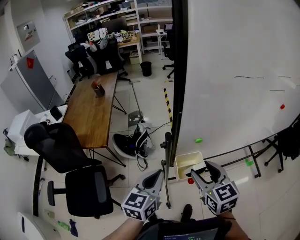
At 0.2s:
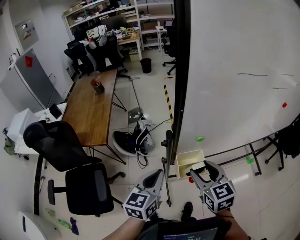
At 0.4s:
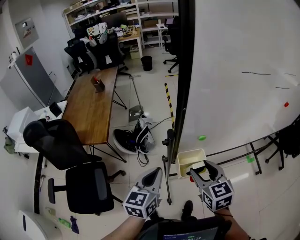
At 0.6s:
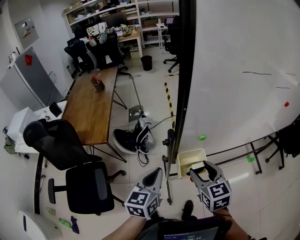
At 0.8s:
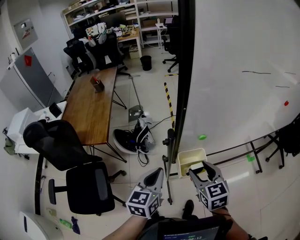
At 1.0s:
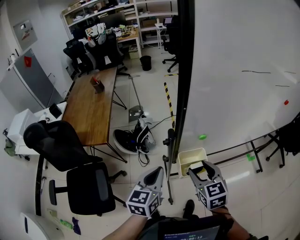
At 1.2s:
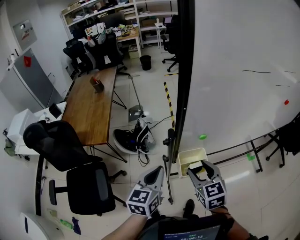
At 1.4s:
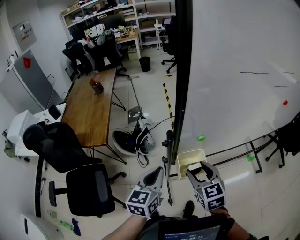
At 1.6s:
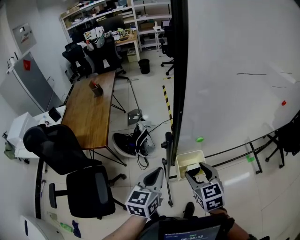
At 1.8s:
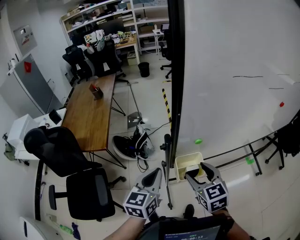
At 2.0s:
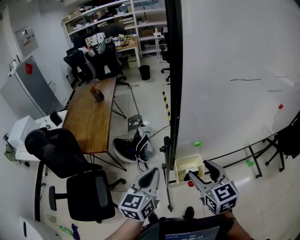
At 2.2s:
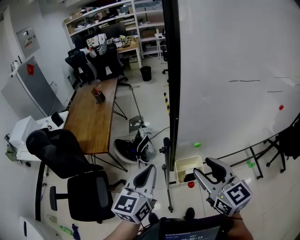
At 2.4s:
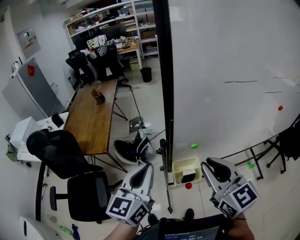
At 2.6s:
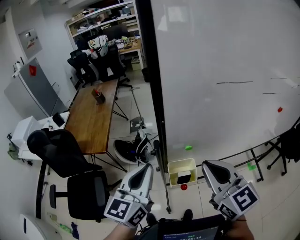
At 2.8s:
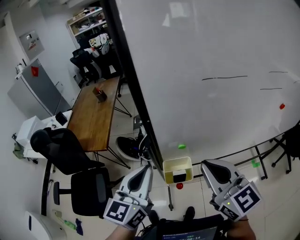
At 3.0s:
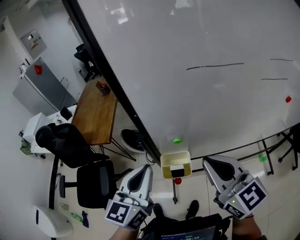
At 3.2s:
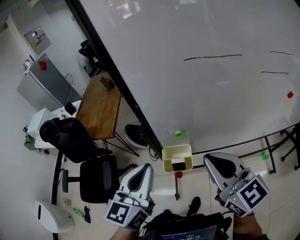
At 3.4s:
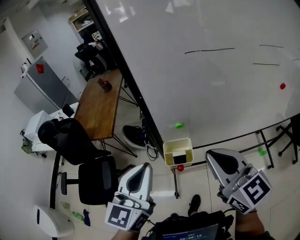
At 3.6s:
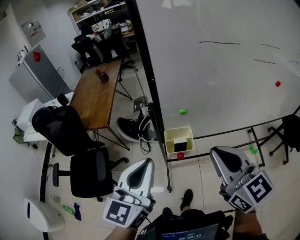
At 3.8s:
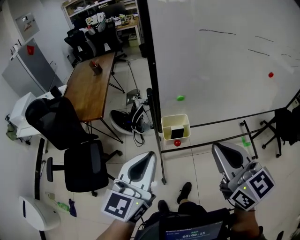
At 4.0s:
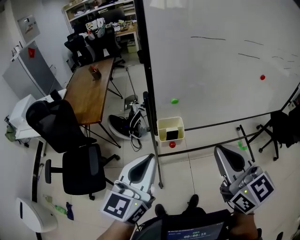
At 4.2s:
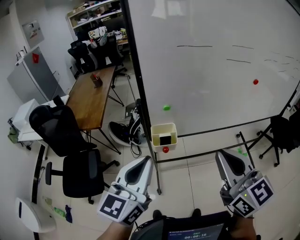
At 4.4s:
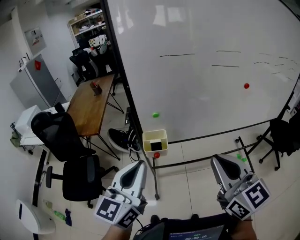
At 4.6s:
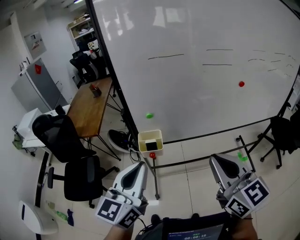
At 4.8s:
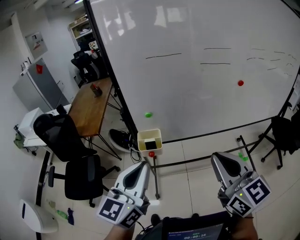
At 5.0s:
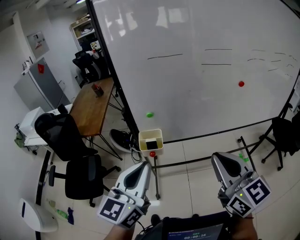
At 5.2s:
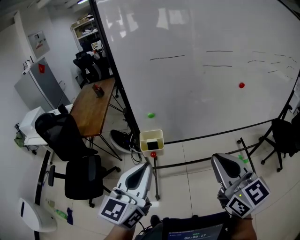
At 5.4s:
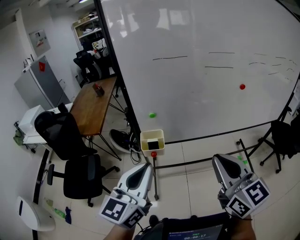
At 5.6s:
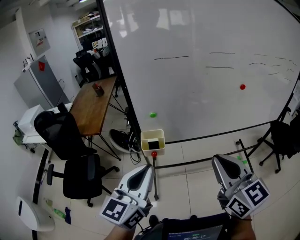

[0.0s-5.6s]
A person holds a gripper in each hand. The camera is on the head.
0.0s to 1.4s: The right gripper goes about 10 cm downward.
1.4s to 2.8s: Both grippers travel together upward and to the right, some 20 cm. The right gripper changes its angle by approximately 30 degrees, and closes.
2.8s to 4.2s: The two grippers go some 20 cm backward.
4.2s to 5.6s: The grippers both shift to the right and backward by approximately 10 cm.

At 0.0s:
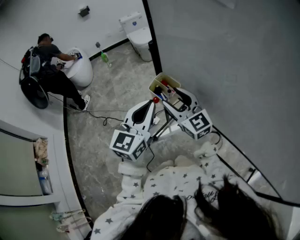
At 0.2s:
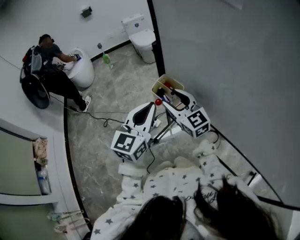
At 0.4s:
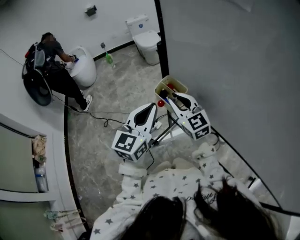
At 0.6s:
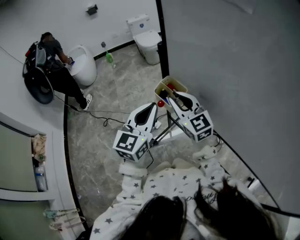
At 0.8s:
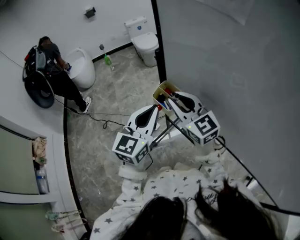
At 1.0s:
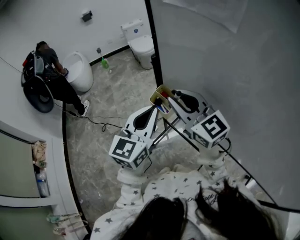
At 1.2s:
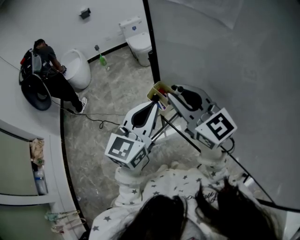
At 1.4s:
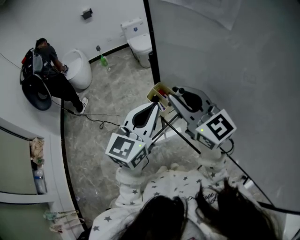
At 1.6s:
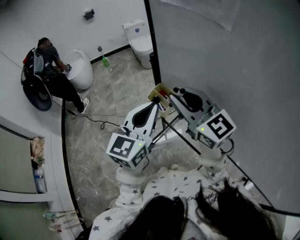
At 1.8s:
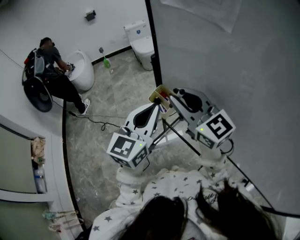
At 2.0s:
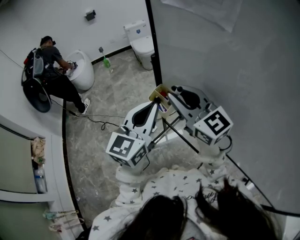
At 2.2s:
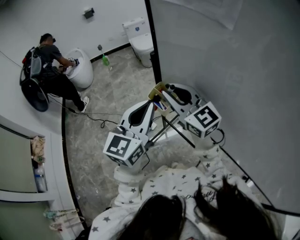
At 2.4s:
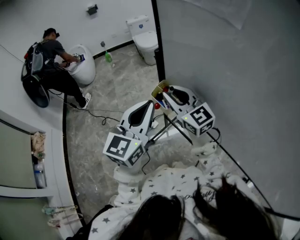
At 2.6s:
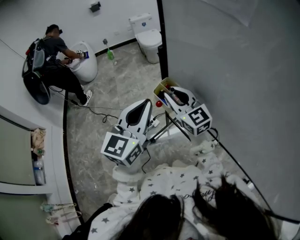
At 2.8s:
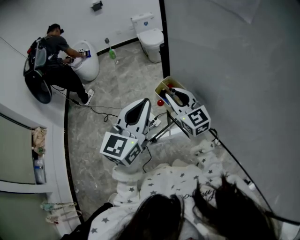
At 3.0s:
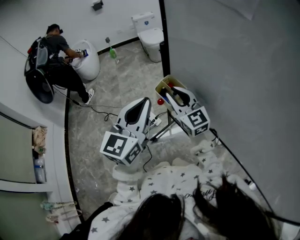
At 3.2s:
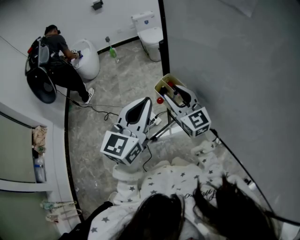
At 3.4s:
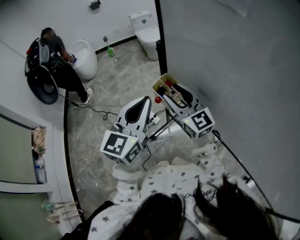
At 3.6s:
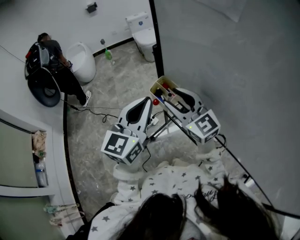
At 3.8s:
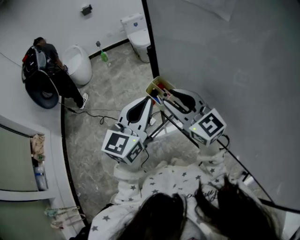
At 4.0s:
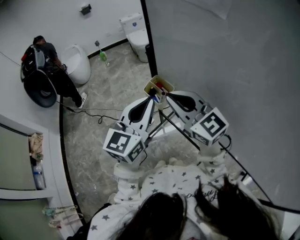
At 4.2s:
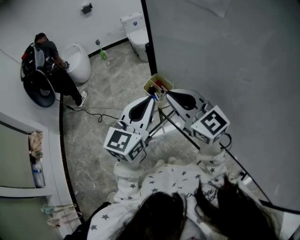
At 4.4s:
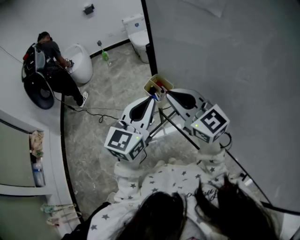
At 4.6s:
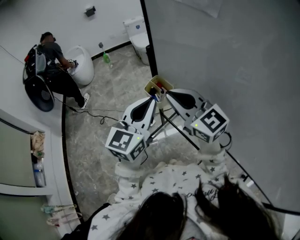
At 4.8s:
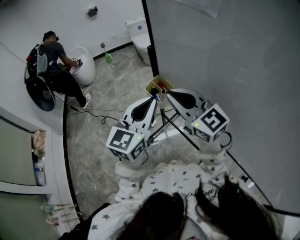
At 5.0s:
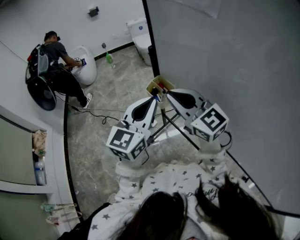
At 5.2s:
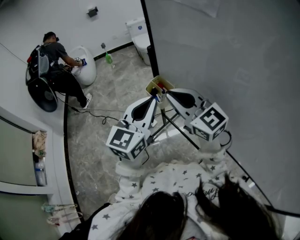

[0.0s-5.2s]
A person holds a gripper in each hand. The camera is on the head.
0.0s to 1.8s: The left gripper is displaced upward by some 5 cm, while the right gripper travels upward by roughly 15 cm, and closes.
1.8s to 3.4s: The right gripper travels downward by approximately 10 cm, and opens.
3.4s to 5.2s: The right gripper moves backward and upward, about 10 cm, and closes its fingers.

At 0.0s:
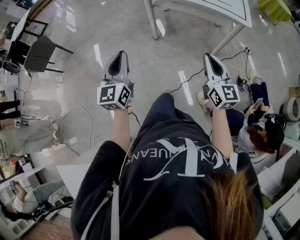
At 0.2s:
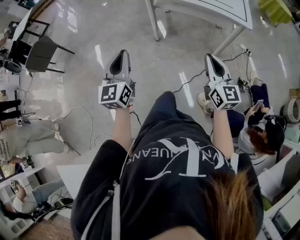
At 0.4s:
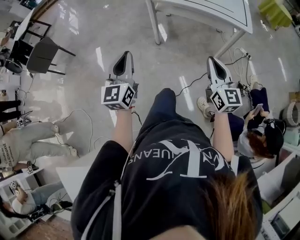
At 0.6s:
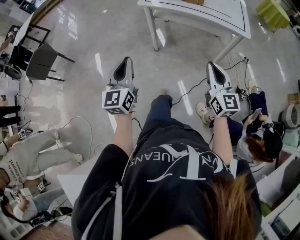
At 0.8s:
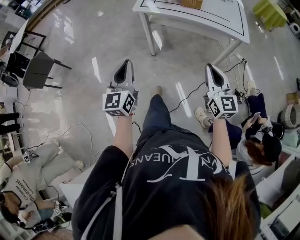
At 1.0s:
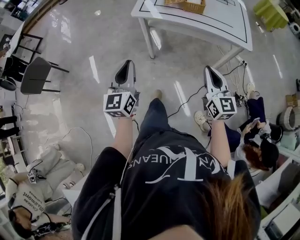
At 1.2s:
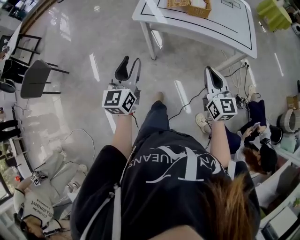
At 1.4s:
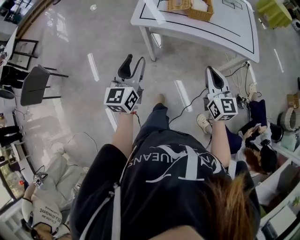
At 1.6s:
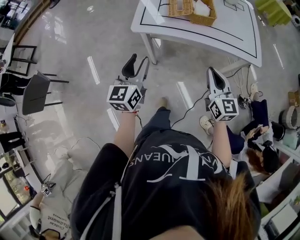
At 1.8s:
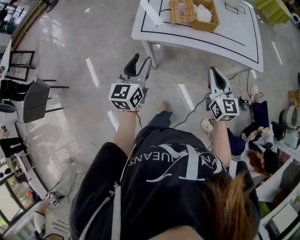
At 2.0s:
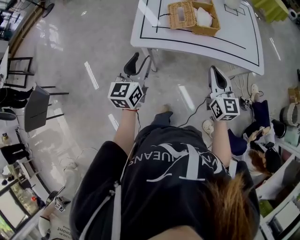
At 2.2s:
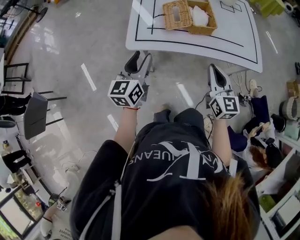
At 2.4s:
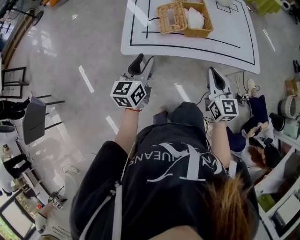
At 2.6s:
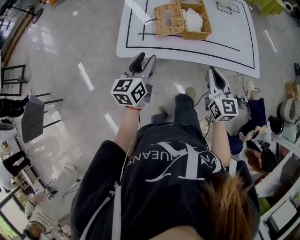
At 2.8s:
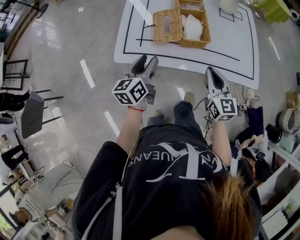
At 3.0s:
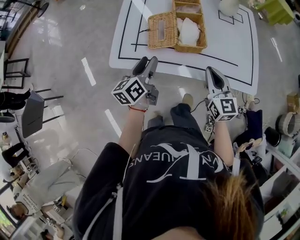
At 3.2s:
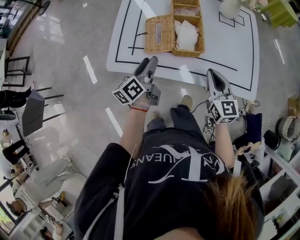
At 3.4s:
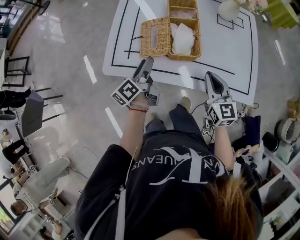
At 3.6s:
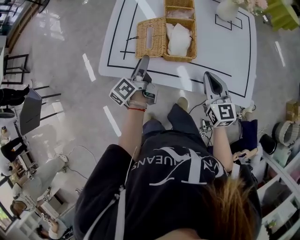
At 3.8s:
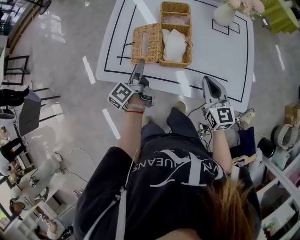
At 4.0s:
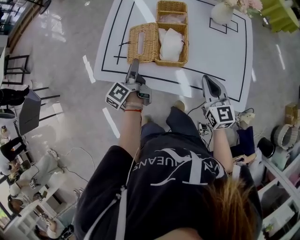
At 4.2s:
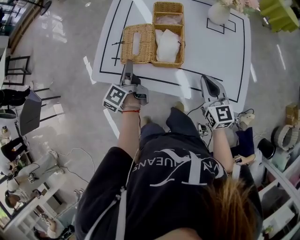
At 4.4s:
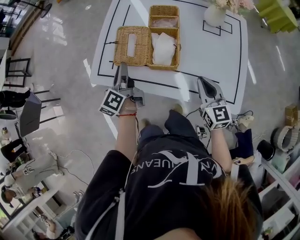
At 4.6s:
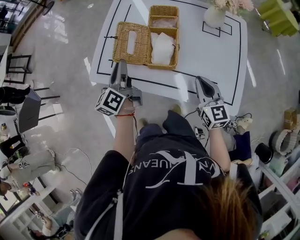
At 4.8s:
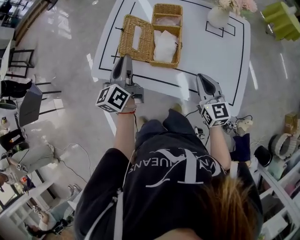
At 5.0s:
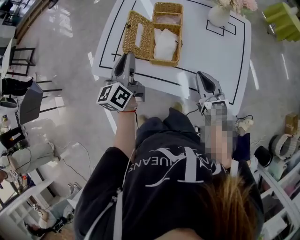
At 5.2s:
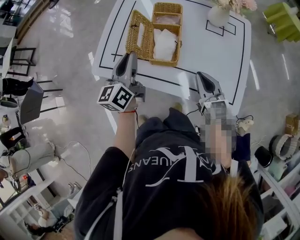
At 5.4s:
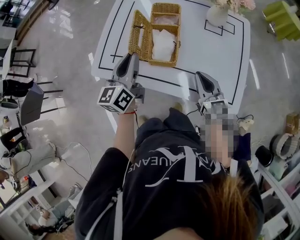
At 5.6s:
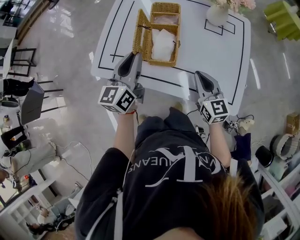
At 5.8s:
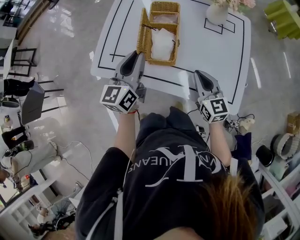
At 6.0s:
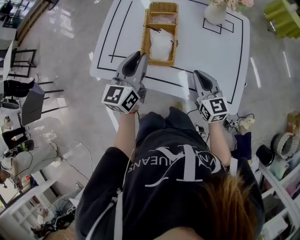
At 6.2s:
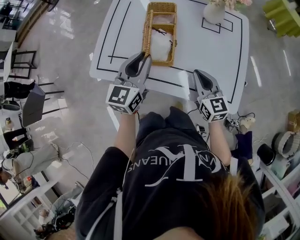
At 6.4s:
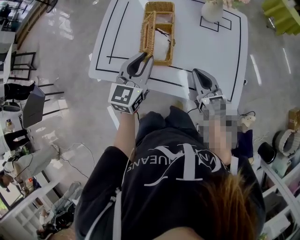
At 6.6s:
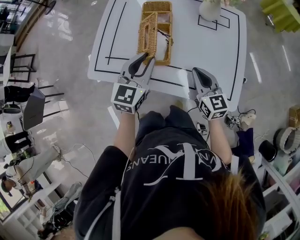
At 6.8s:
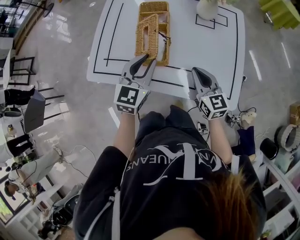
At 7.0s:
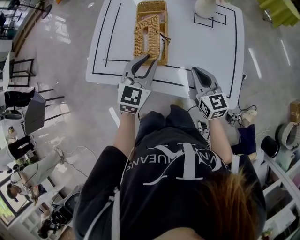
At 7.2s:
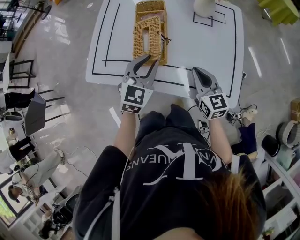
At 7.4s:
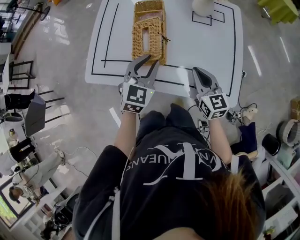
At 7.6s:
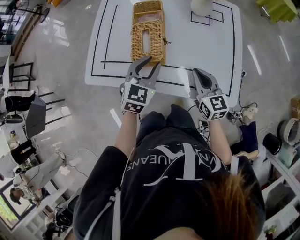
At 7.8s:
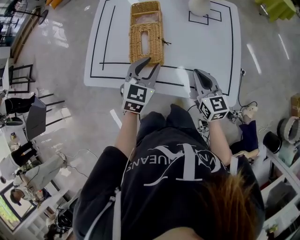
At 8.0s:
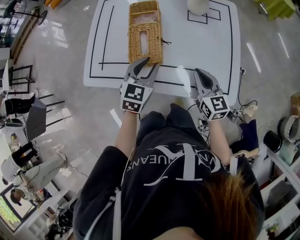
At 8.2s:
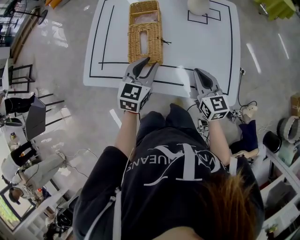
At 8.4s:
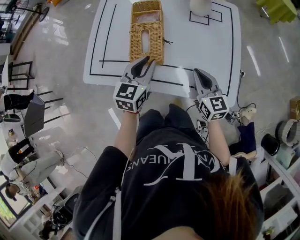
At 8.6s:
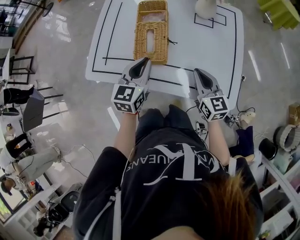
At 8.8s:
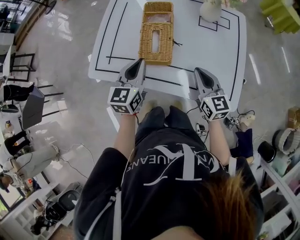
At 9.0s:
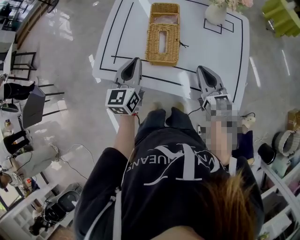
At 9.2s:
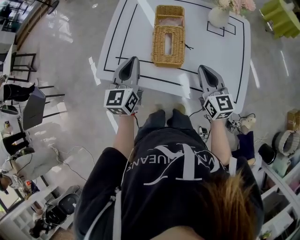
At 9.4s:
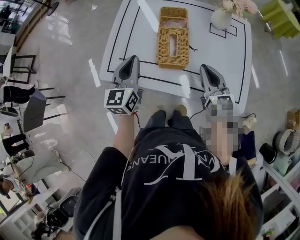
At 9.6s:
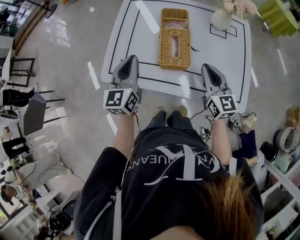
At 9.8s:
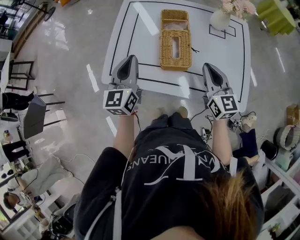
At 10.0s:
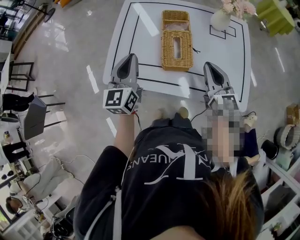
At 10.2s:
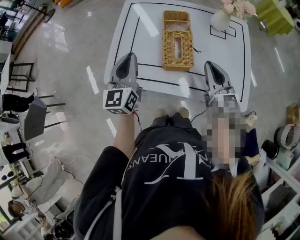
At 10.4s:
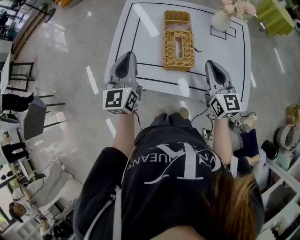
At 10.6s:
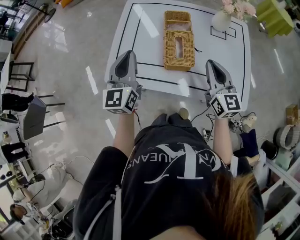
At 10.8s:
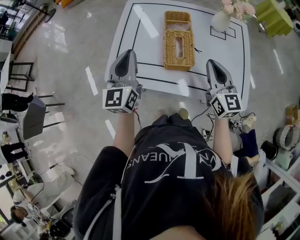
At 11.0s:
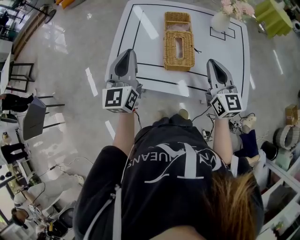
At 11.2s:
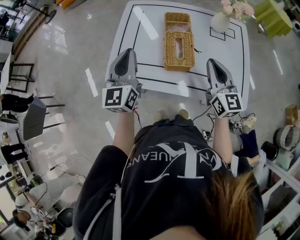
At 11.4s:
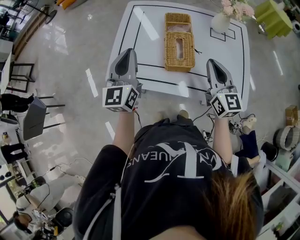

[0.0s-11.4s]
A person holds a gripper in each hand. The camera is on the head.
0.0s to 1.4s: The two grippers go some 30 cm forward. The left gripper opens its fingers.
1.4s to 2.8s: The two grippers go about 25 cm forward. The left gripper changes its angle by some 30 degrees.
2.8s to 4.2s: The left gripper goes some 10 cm forward, and swivels approximately 40 degrees; the right gripper heads to the right and forward, covering roughly 15 cm.
4.2s to 5.6s: The left gripper travels upward and to the right by about 15 cm, and twists about 50 degrees clockwise, seen from behind.
5.6s to 7.2s: The left gripper moves to the right and downward, roughly 10 cm, and swivels about 40 degrees.
7.2s to 8.6s: The left gripper rotates some 20 degrees.
8.6s to 10.0s: The left gripper goes roughly 20 cm to the left and upward, while the right gripper heads upward and to the left, covering some 10 cm.
10.0s to 11.4s: There are only small adjustments of the grippers.

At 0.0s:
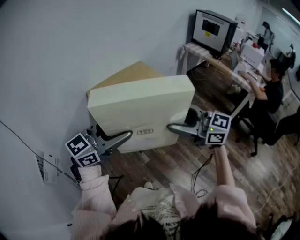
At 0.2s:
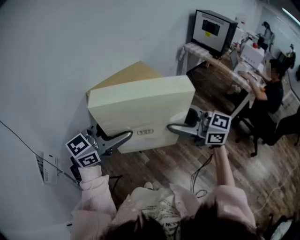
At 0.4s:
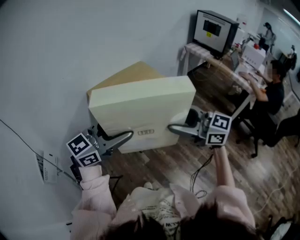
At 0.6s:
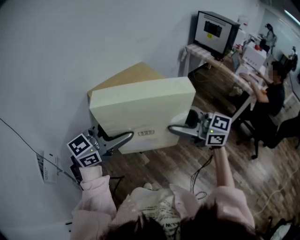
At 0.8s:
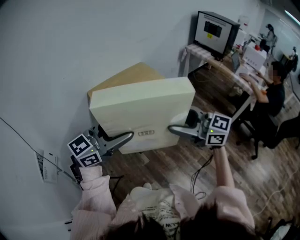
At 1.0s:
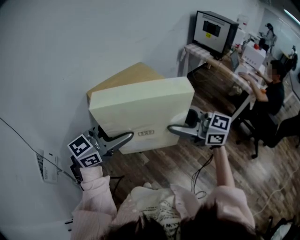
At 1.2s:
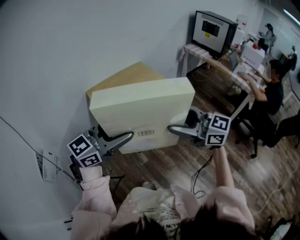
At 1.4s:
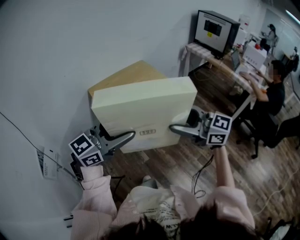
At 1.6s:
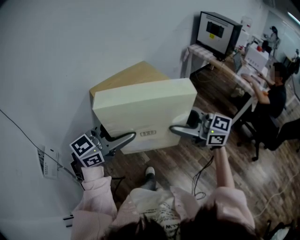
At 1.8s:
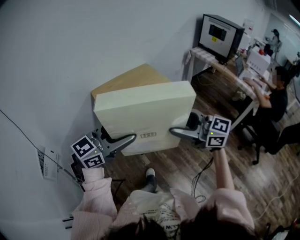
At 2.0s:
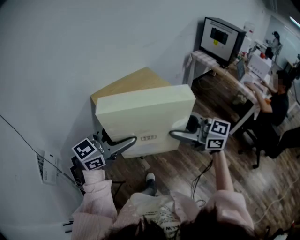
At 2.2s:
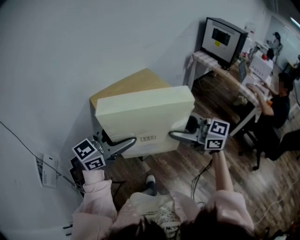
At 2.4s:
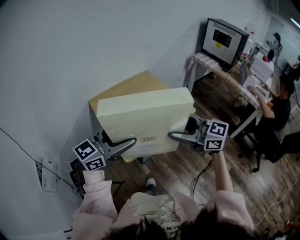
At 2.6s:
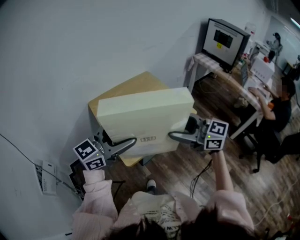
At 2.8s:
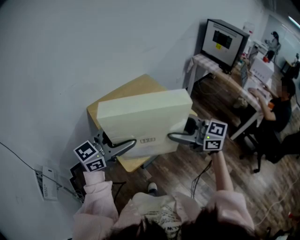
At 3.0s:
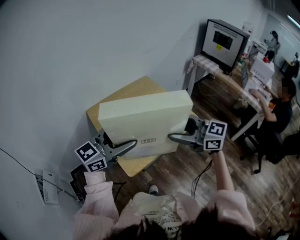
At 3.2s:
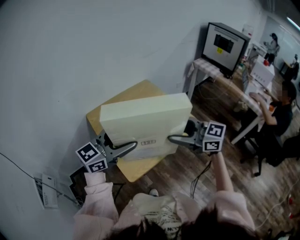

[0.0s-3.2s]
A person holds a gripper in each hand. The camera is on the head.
0.0s to 1.6s: The grippers stay close to where they were, moving slightly.
1.6s to 3.2s: The grippers both shift forward by some 20 cm.
